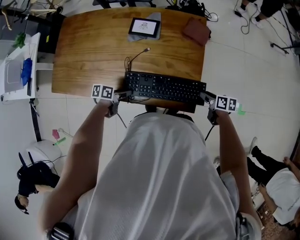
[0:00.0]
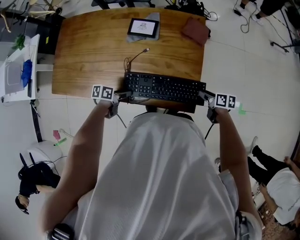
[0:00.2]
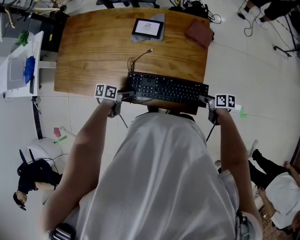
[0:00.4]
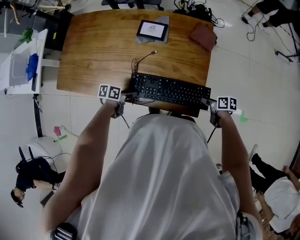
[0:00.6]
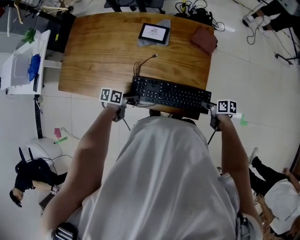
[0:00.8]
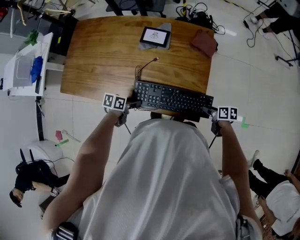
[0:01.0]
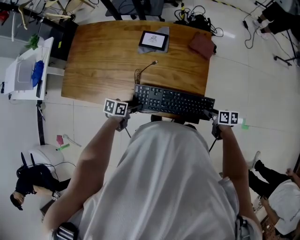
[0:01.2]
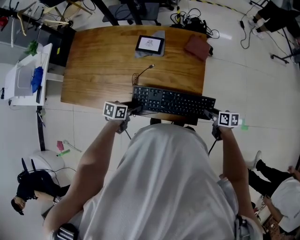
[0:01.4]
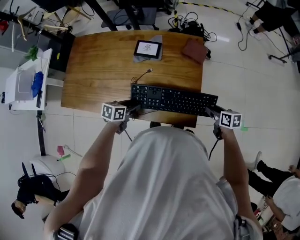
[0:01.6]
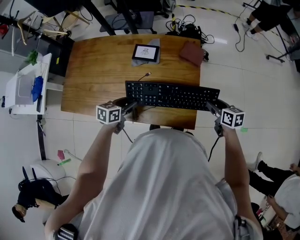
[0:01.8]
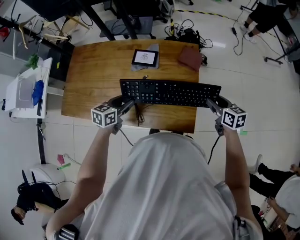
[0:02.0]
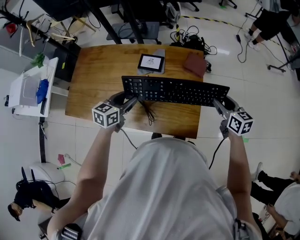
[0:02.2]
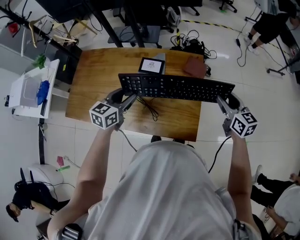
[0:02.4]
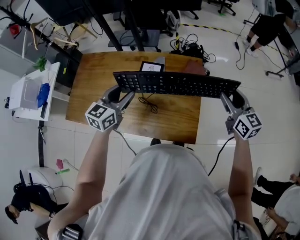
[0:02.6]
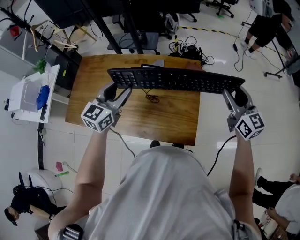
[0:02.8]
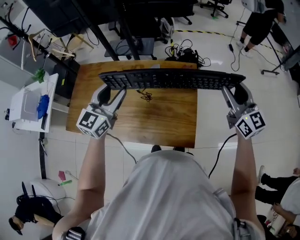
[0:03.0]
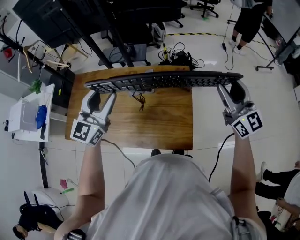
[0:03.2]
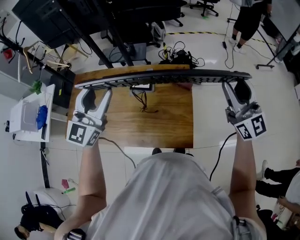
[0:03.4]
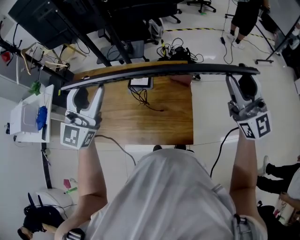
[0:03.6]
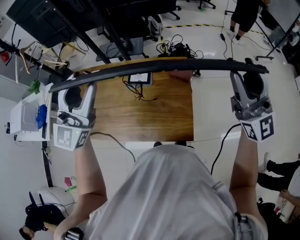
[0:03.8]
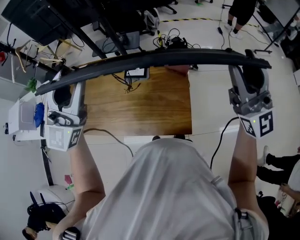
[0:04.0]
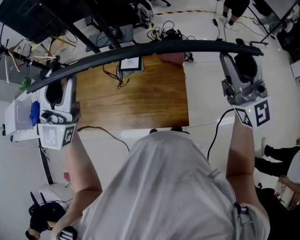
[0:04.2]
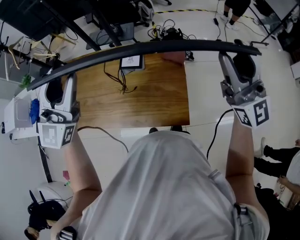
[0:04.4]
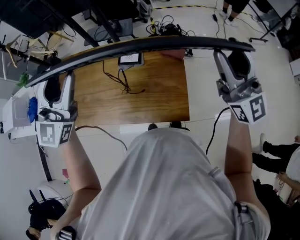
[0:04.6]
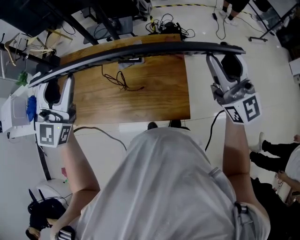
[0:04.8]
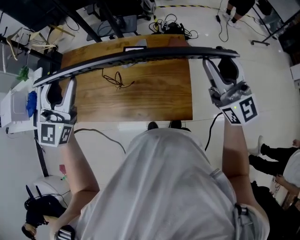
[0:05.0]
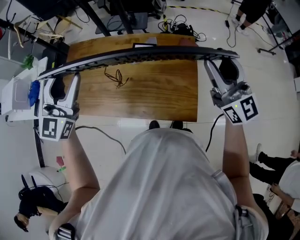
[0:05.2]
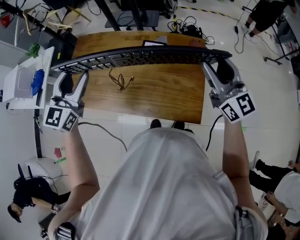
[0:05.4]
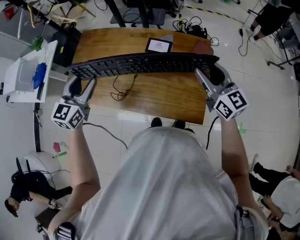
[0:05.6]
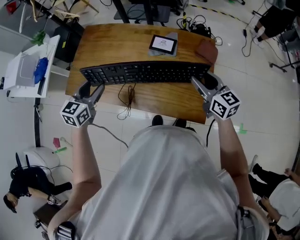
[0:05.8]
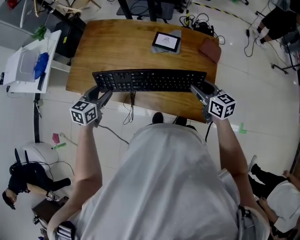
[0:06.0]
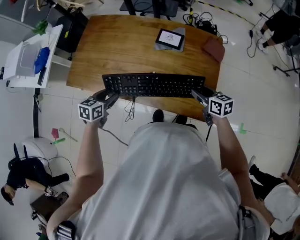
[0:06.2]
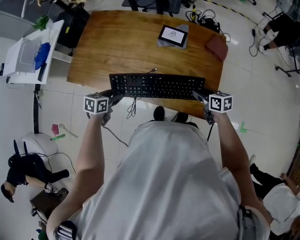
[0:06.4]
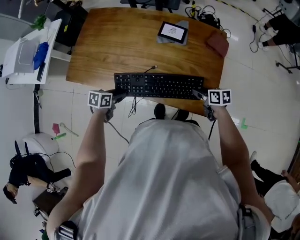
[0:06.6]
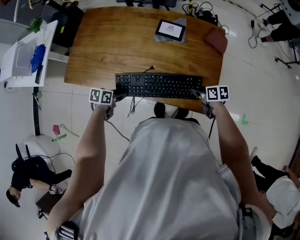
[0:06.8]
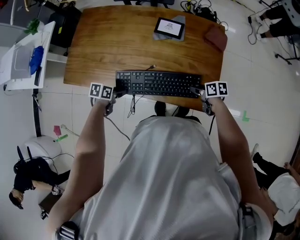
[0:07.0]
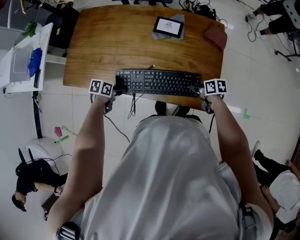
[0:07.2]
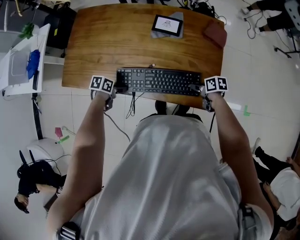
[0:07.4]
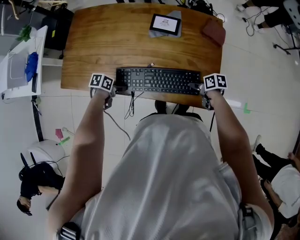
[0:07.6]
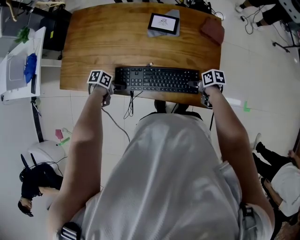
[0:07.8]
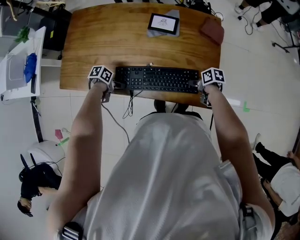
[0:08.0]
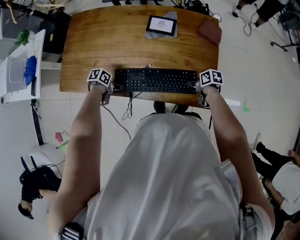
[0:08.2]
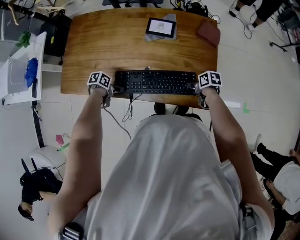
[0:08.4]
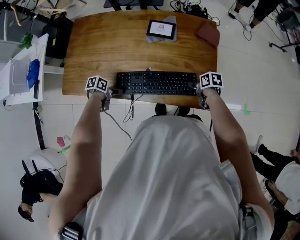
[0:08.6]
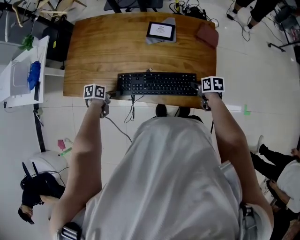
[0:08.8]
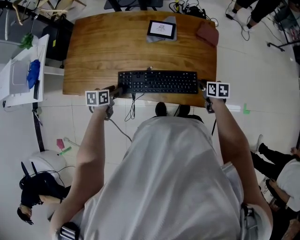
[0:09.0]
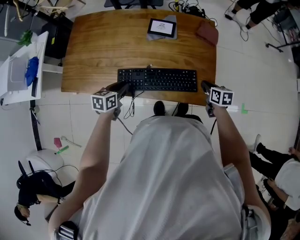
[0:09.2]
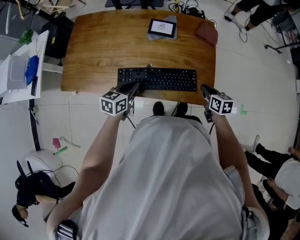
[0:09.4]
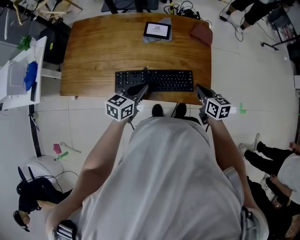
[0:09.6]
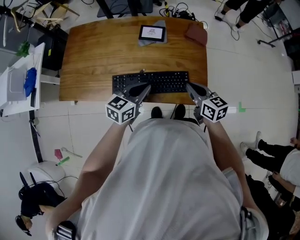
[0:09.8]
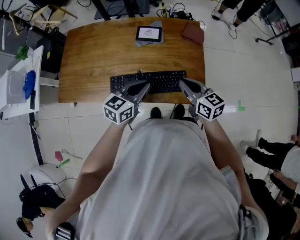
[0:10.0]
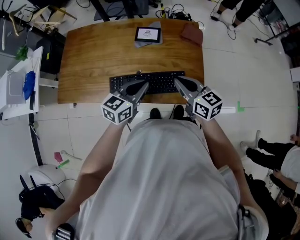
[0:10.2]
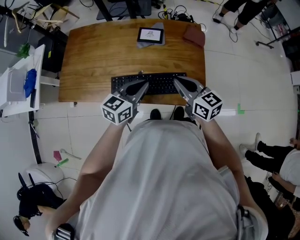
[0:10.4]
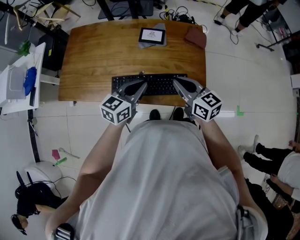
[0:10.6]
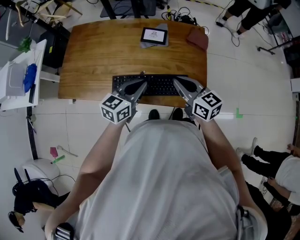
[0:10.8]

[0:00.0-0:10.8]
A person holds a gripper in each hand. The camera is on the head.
0.0 to 1.6 s: The two grippers go some 5 cm upward. The left gripper changes its angle by about 20 degrees.
1.6 to 3.0 s: The two grippers go roughly 35 cm upward. The left gripper tips its fingers upward by some 40 degrees, while the right gripper tips its fingers upward by some 40 degrees.
3.0 to 4.6 s: The right gripper is displaced upward and backward by about 15 cm, and rotates roughly 20 degrees. The left gripper is displaced upward by roughly 15 cm, and turns by roughly 20 degrees.
4.6 to 6.2 s: The grippers both shift downward by approximately 40 cm. The left gripper points its fingers some 50 degrees further downward. The right gripper angles its fingers downward, by about 50 degrees.
6.2 to 7.8 s: Both grippers move downward, roughly 15 cm. The right gripper rotates approximately 40 degrees. The left gripper swivels roughly 50 degrees.
7.8 to 9.2 s: The two grippers go some 10 cm upward. The left gripper turns by roughly 40 degrees, and closes. The right gripper rotates some 30 degrees, and closes up.
9.2 to 10.8 s: The left gripper is displaced to the right and upward by about 20 cm, swivels some 30 degrees, and closes up, while the right gripper moves upward and to the left, some 25 cm, and tips its fingers upward by roughly 30 degrees.

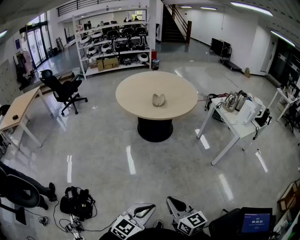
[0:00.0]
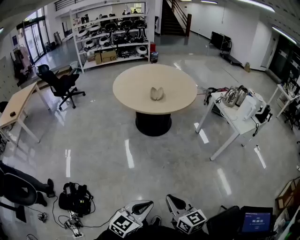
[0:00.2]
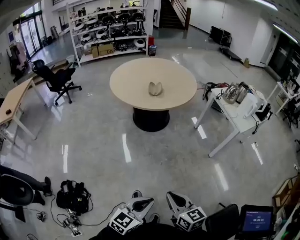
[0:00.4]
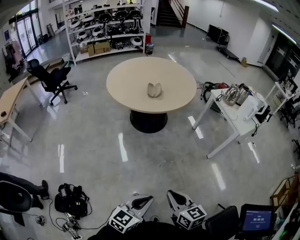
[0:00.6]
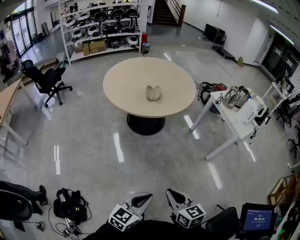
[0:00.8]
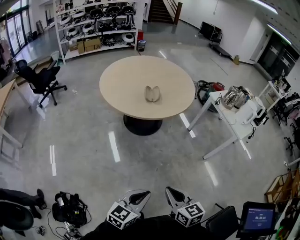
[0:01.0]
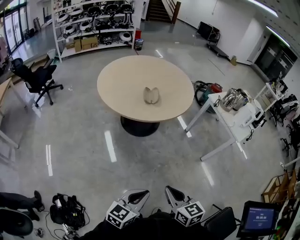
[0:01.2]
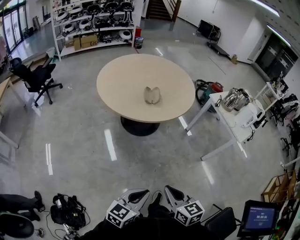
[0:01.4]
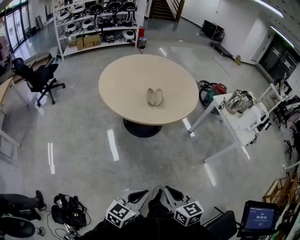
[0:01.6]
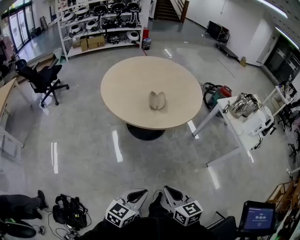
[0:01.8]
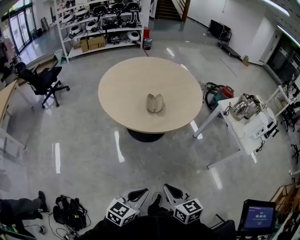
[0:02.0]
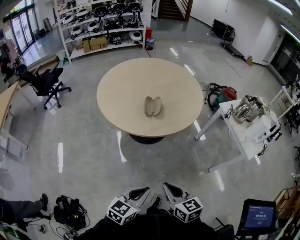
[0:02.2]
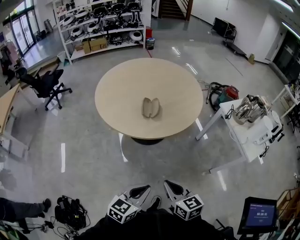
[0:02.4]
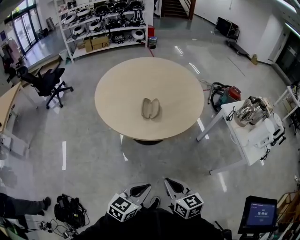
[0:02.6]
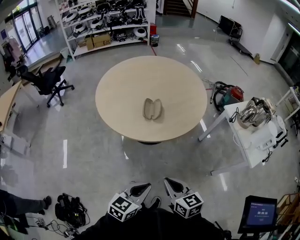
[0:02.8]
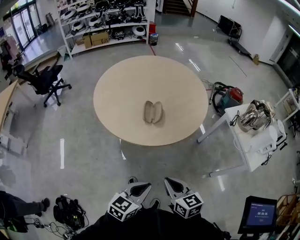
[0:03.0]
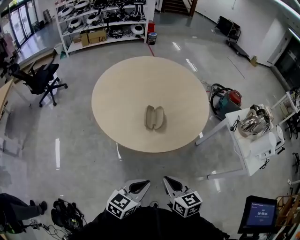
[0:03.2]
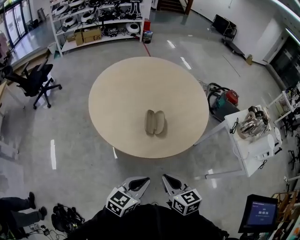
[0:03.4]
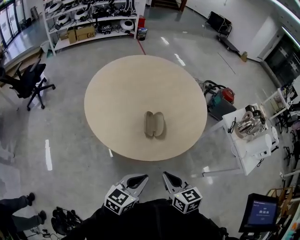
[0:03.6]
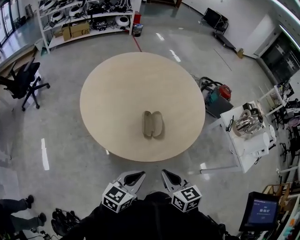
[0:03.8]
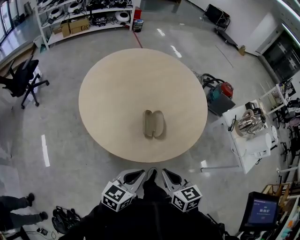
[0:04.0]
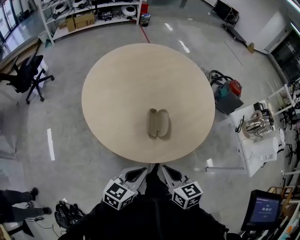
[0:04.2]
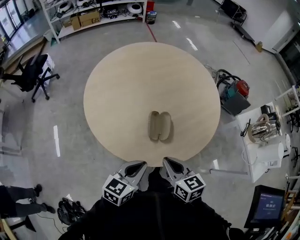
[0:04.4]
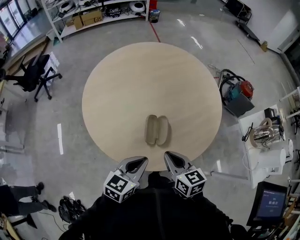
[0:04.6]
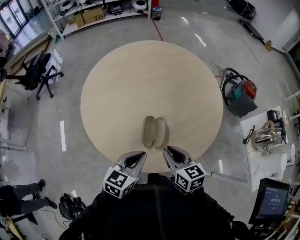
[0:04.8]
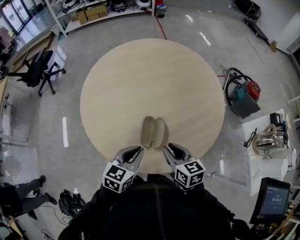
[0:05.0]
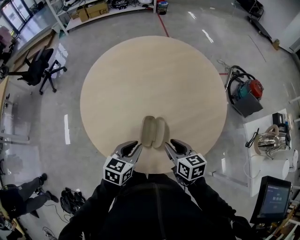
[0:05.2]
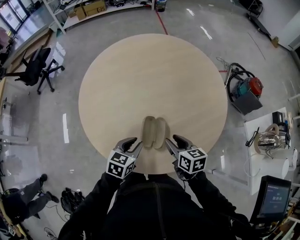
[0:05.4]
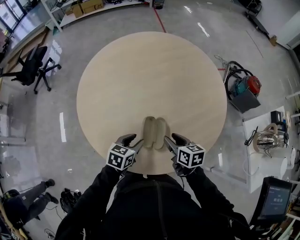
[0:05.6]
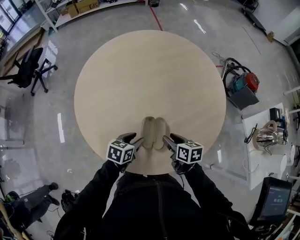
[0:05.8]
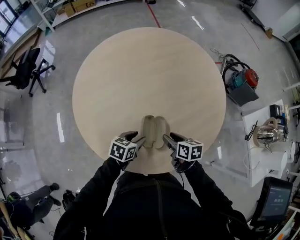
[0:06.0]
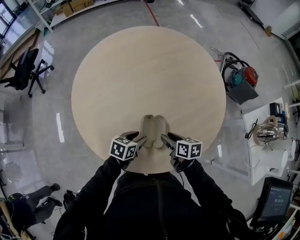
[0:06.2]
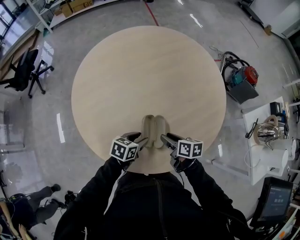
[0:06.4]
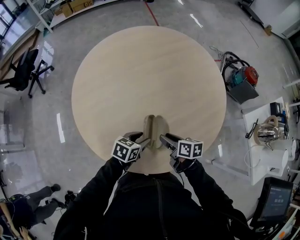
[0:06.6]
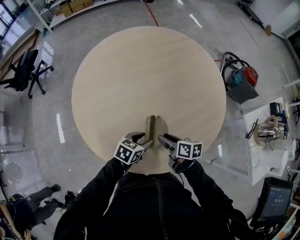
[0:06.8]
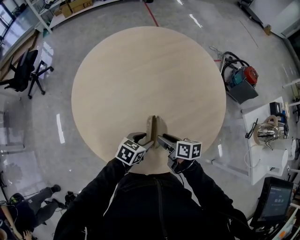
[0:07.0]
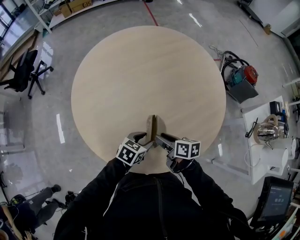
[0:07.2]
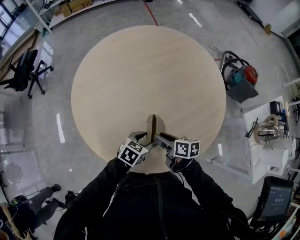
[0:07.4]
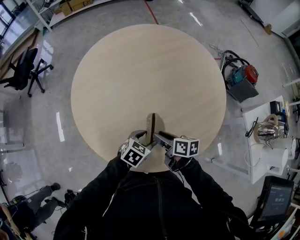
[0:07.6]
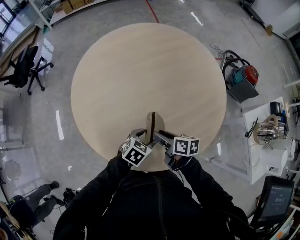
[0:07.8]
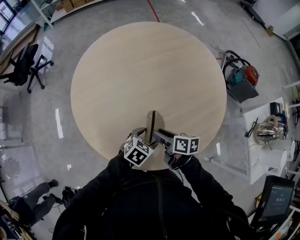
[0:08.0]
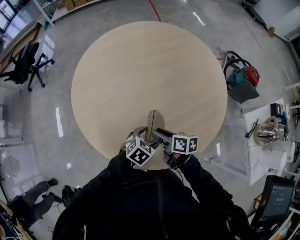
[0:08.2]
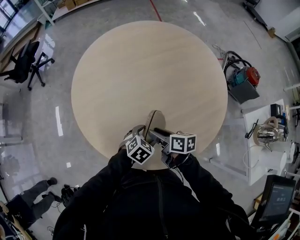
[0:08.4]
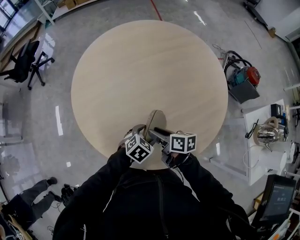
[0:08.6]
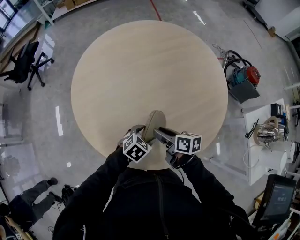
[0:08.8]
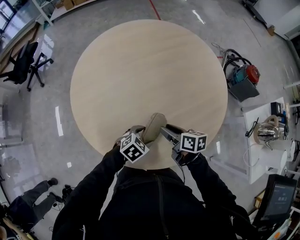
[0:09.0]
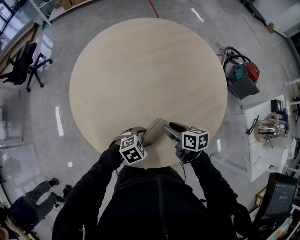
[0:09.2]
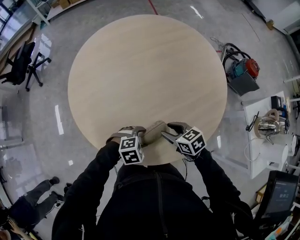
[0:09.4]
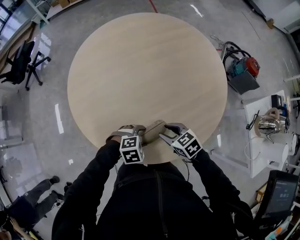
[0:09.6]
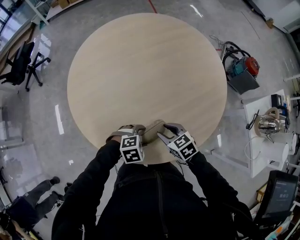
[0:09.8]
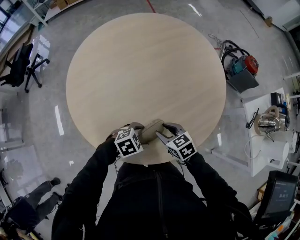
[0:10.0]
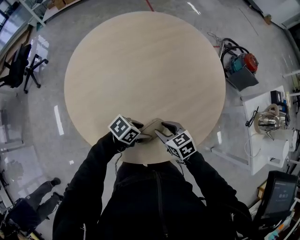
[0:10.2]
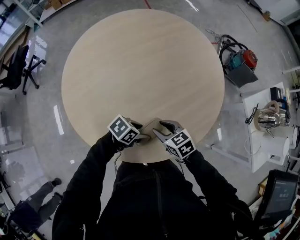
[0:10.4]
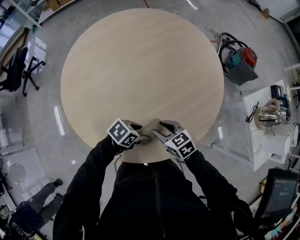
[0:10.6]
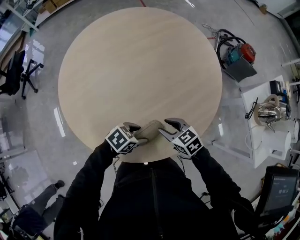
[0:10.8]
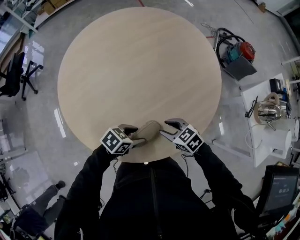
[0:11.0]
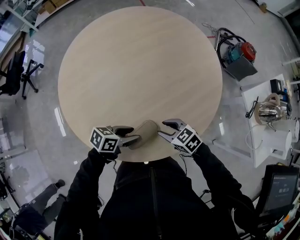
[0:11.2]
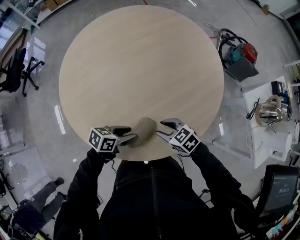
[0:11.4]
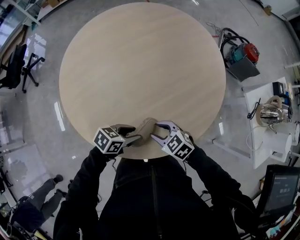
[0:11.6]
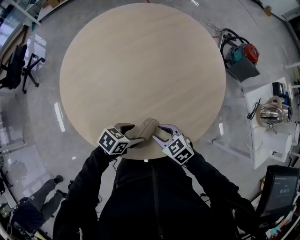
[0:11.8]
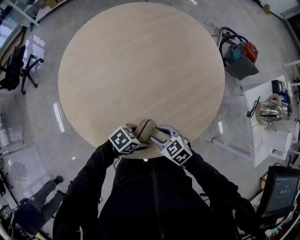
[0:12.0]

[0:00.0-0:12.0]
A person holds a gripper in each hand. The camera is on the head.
0.0 to 1.6 s: Both grippers move forward and to the left, about 30 cm.
1.6 to 3.0 s: Both grippers move forward, roughly 25 cm.
3.0 to 4.4 s: The grippers both shift forward and to the left by about 30 cm.
4.4 to 6.0 s: The left gripper heads forward and downward, covering approximately 25 cm, changes its angle by some 30 degrees, and opens up. Meanwhile the right gripper is displaced forward, downward and to the right by some 25 cm, changes its angle by some 30 degrees, and opens up.
6.0 to 7.6 s: The right gripper ends up about 5 cm from where it was. The left gripper moves to the right, approximately 5 cm.
7.6 to 9.0 s: The grippers move only a little.
9.0 to 10.4 s: The right gripper turns by roughly 40 degrees, while the left gripper swivels roughly 30 degrees.
10.4 to 12.0 s: The left gripper ends up about 5 cm from where it was. Meanwhile the right gripper changes place by some 5 cm.

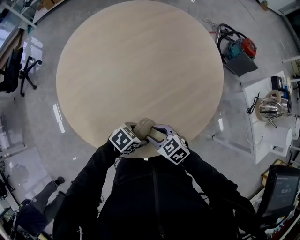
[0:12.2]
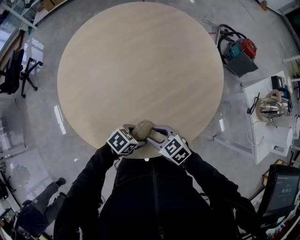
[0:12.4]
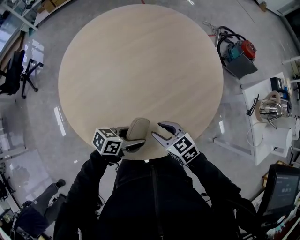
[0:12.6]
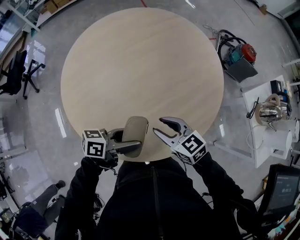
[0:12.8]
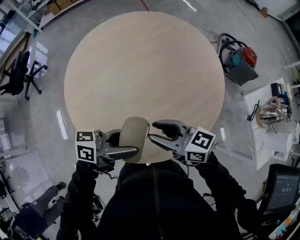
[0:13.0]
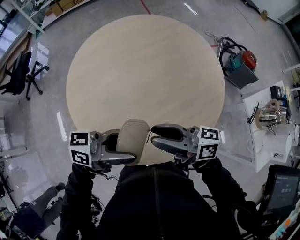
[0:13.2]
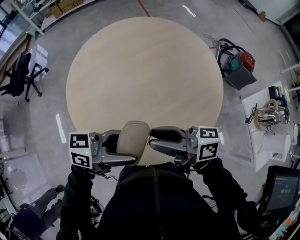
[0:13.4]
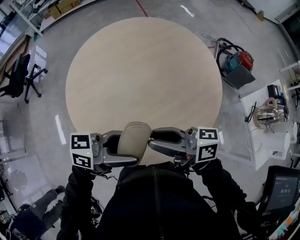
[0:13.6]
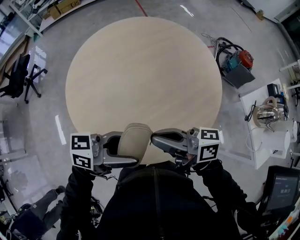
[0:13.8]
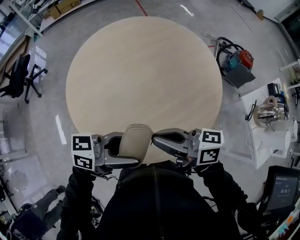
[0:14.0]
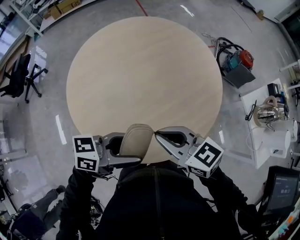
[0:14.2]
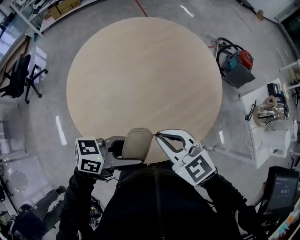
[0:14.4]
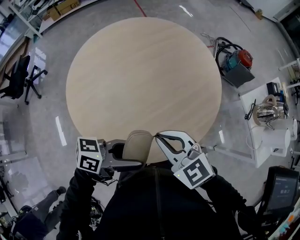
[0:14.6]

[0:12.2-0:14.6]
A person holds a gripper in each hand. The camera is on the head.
12.2 to 13.4 s: The grippers both shift upward by roughly 25 cm. The right gripper tips its fingers upward by about 50 degrees, while the left gripper angles its fingers upward, by about 50 degrees.
13.4 to 14.6 s: The right gripper angles its fingers downward, by approximately 30 degrees, and closes up; the left gripper shifts by some 5 cm.
